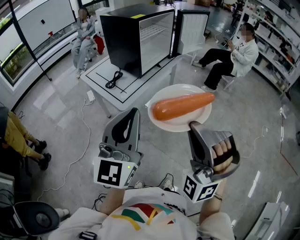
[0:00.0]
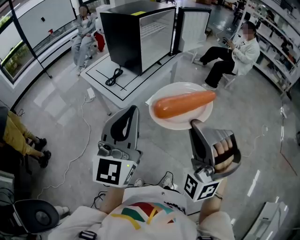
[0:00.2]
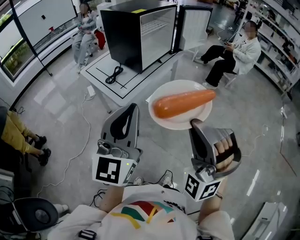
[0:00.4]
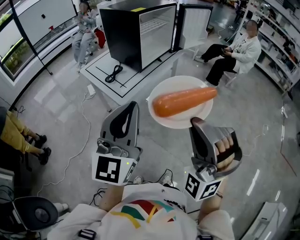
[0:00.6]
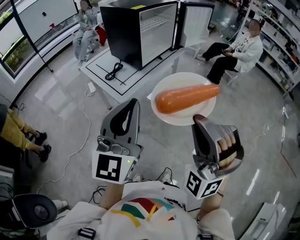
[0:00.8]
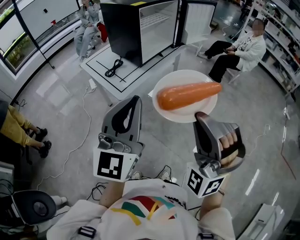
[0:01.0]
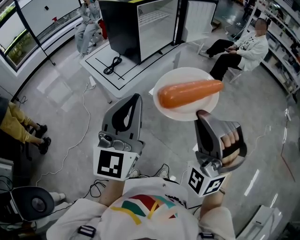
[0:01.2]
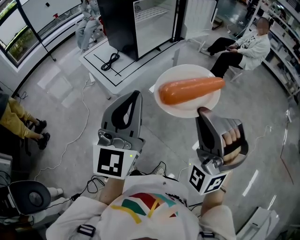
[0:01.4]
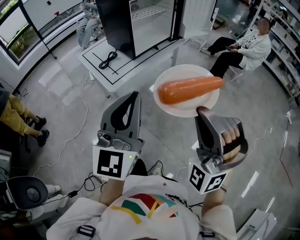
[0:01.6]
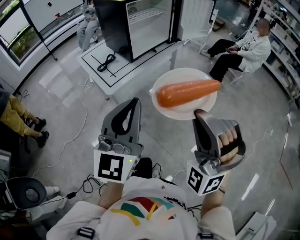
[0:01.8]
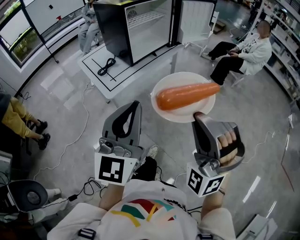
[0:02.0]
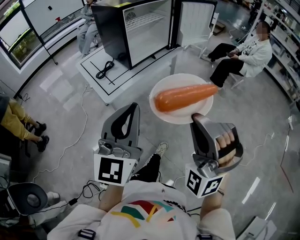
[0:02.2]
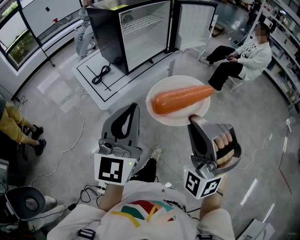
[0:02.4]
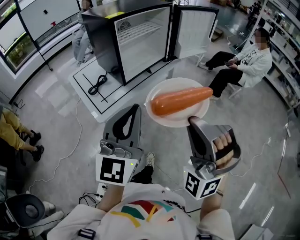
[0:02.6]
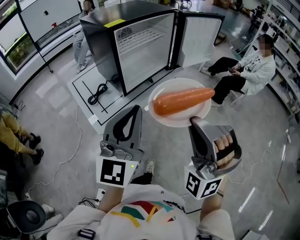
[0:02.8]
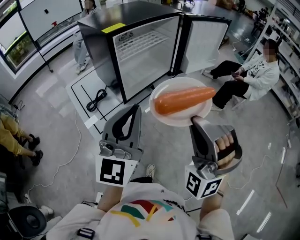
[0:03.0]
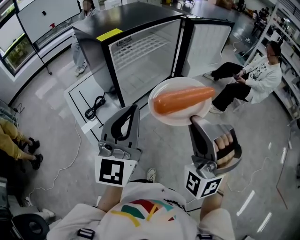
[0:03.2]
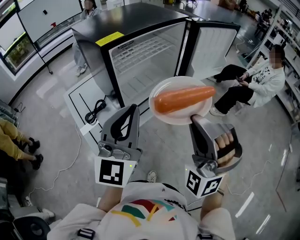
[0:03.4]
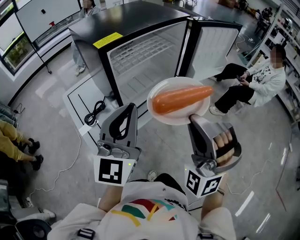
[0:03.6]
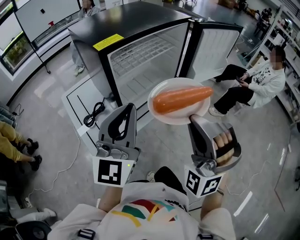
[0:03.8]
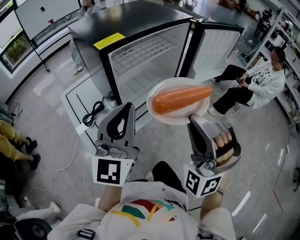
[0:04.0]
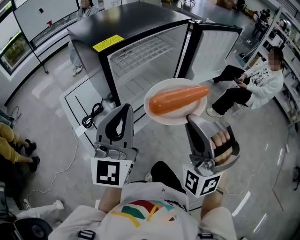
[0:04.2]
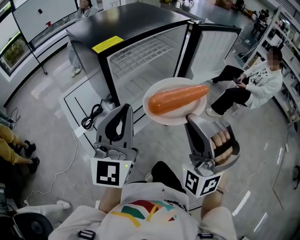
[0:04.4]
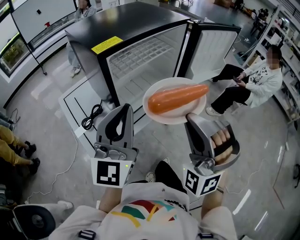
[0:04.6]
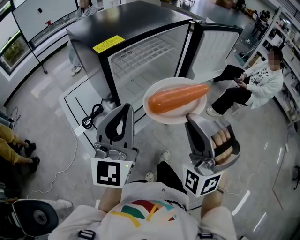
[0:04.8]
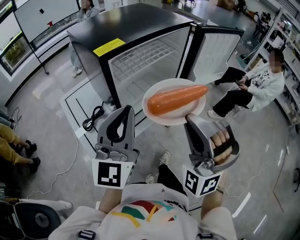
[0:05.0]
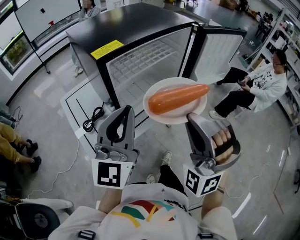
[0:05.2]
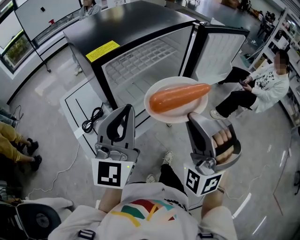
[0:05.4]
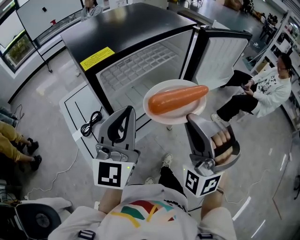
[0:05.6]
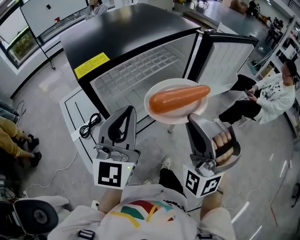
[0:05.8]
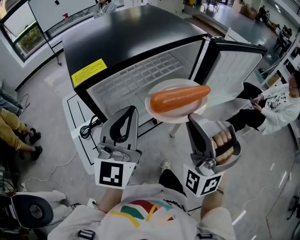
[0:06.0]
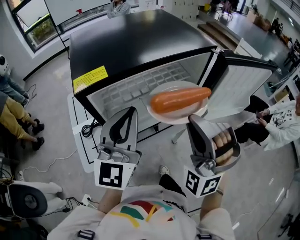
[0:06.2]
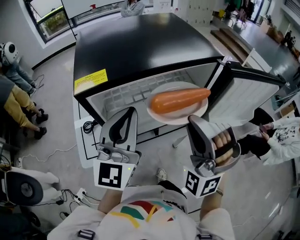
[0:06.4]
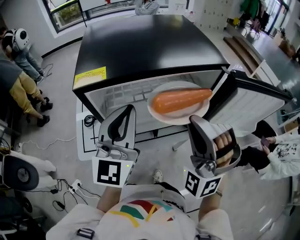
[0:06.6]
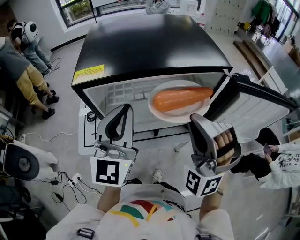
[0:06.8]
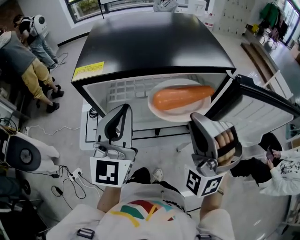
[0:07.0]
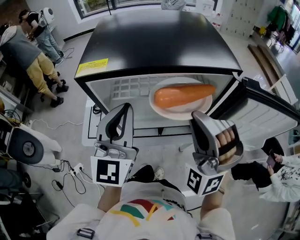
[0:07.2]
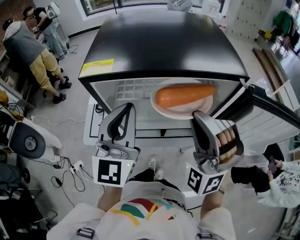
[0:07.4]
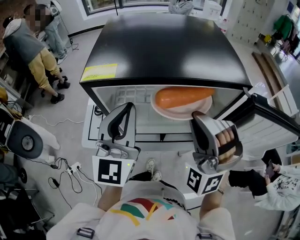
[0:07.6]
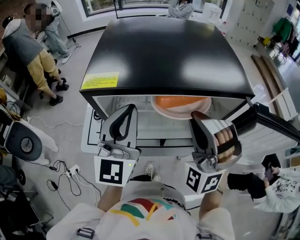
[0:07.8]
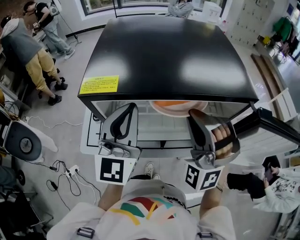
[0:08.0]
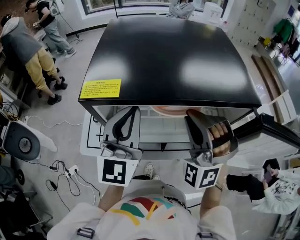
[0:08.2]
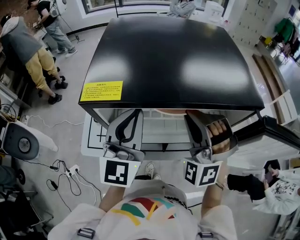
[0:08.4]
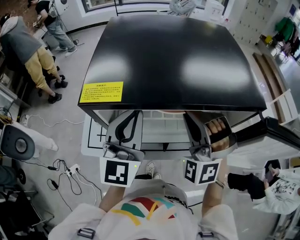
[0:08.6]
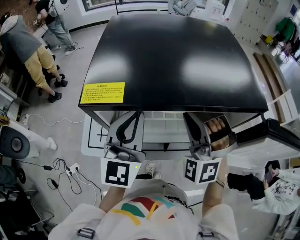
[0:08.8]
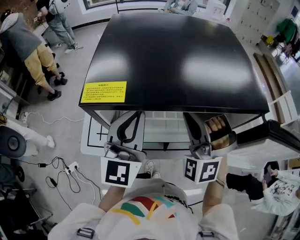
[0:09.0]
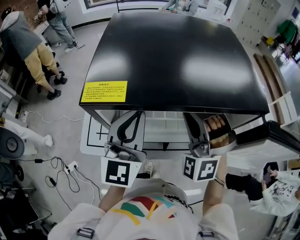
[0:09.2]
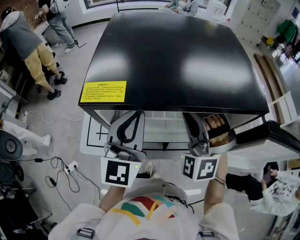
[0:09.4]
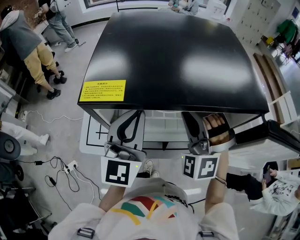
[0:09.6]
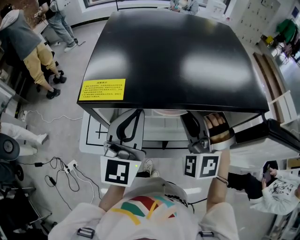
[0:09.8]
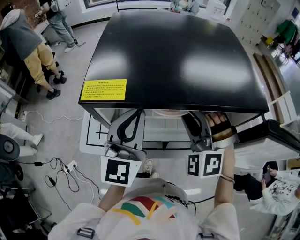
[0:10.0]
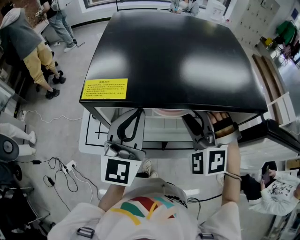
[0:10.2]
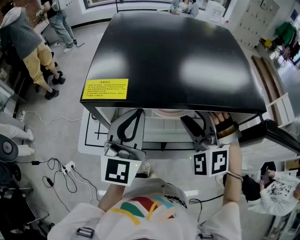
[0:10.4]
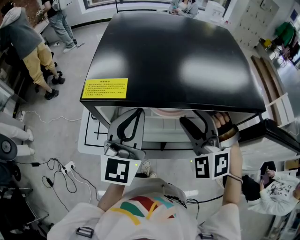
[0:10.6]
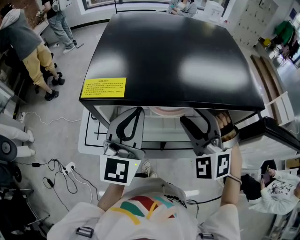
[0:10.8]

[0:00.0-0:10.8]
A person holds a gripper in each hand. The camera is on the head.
0:00.0 to 0:01.6: The left gripper shifts by some 10 cm.
0:01.6 to 0:03.0: The left gripper changes place by some 30 cm.
0:03.0 to 0:04.6: The left gripper moves about 15 cm.
0:04.6 to 0:06.2: The left gripper shifts by some 15 cm.
0:06.2 to 0:07.8: The left gripper shifts by approximately 5 cm, and rotates roughly 30 degrees.
0:07.8 to 0:09.2: The left gripper ends up approximately 5 cm from where it was.

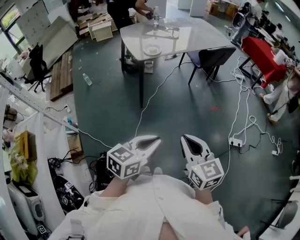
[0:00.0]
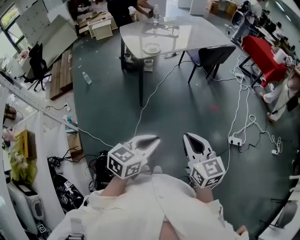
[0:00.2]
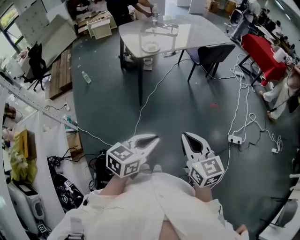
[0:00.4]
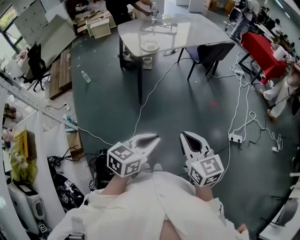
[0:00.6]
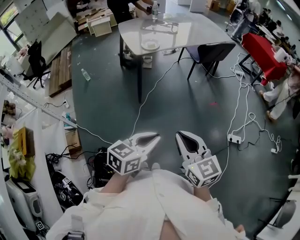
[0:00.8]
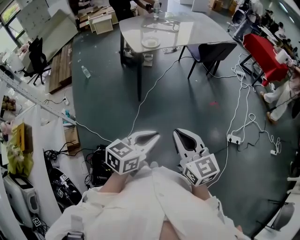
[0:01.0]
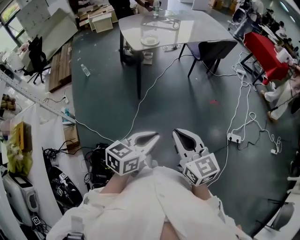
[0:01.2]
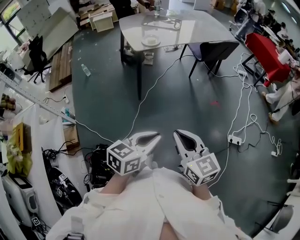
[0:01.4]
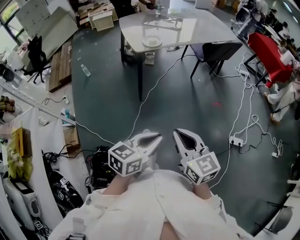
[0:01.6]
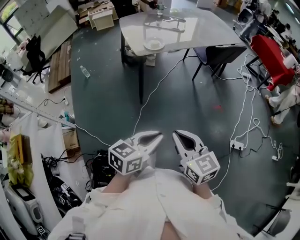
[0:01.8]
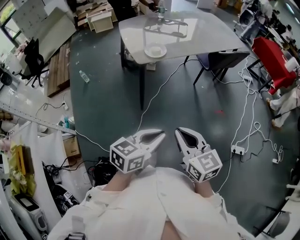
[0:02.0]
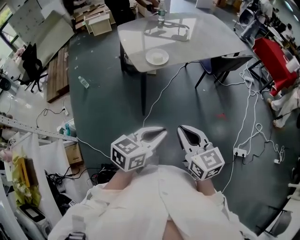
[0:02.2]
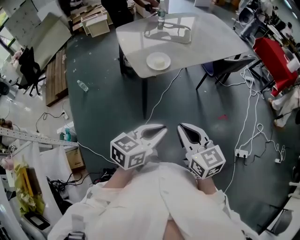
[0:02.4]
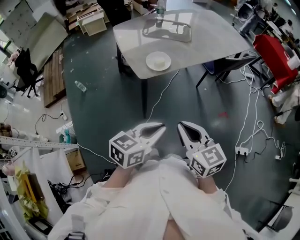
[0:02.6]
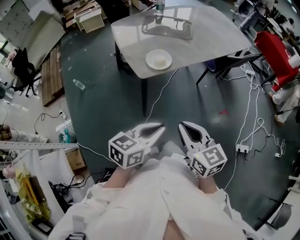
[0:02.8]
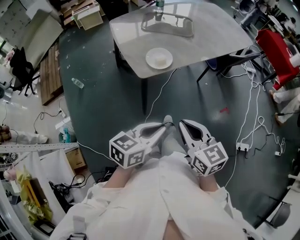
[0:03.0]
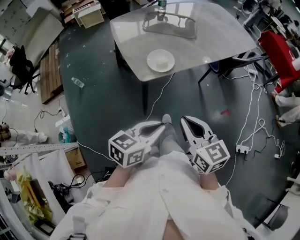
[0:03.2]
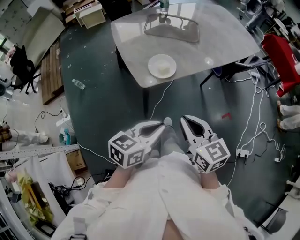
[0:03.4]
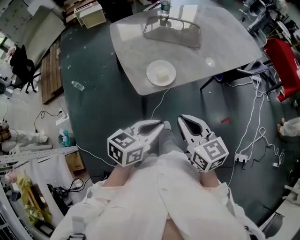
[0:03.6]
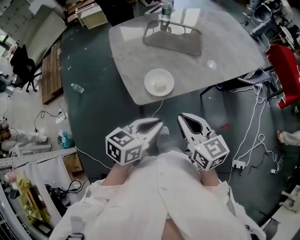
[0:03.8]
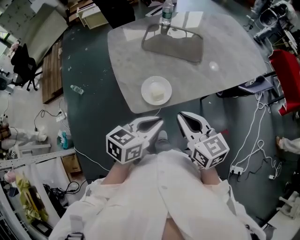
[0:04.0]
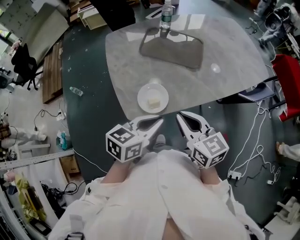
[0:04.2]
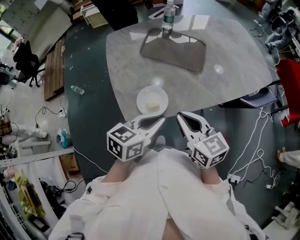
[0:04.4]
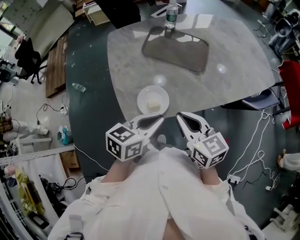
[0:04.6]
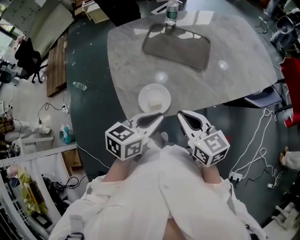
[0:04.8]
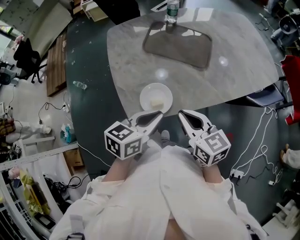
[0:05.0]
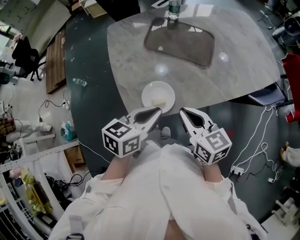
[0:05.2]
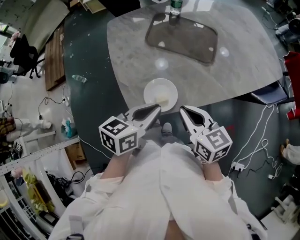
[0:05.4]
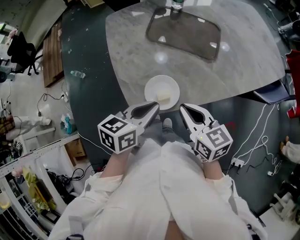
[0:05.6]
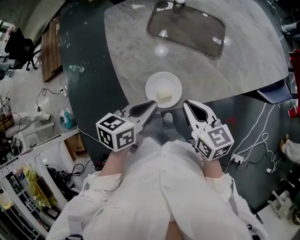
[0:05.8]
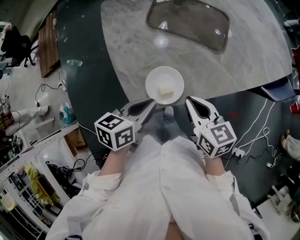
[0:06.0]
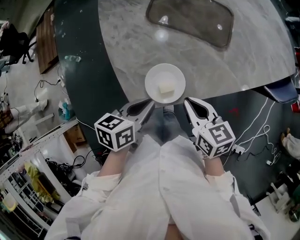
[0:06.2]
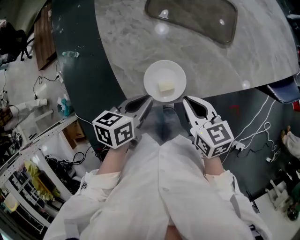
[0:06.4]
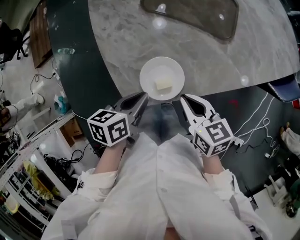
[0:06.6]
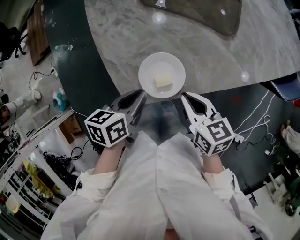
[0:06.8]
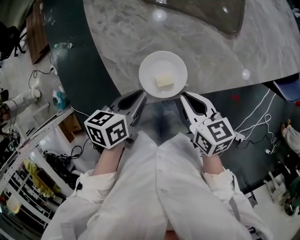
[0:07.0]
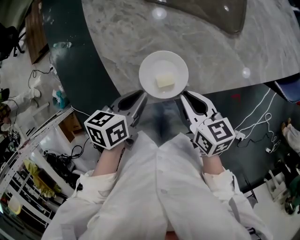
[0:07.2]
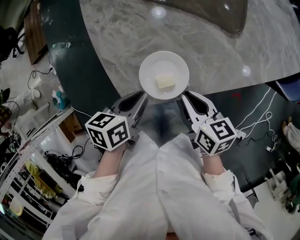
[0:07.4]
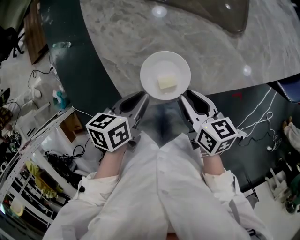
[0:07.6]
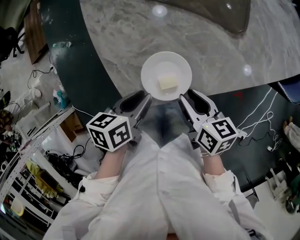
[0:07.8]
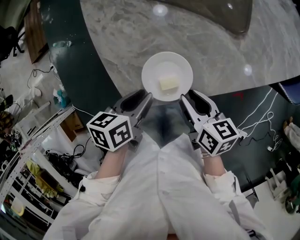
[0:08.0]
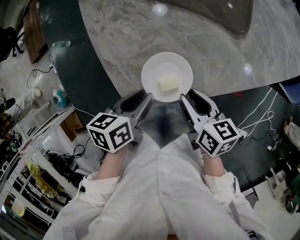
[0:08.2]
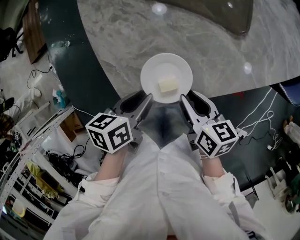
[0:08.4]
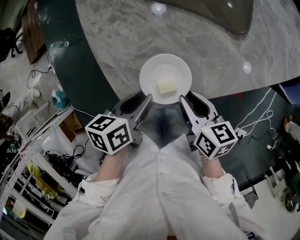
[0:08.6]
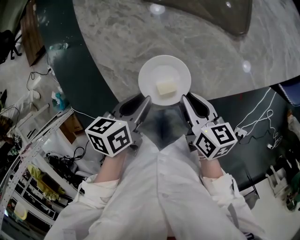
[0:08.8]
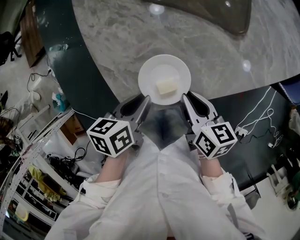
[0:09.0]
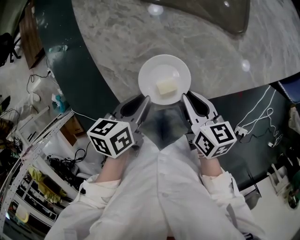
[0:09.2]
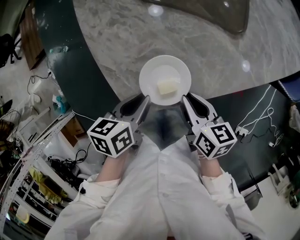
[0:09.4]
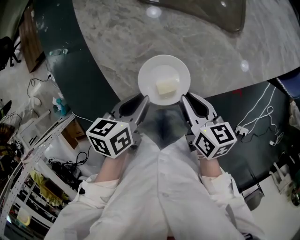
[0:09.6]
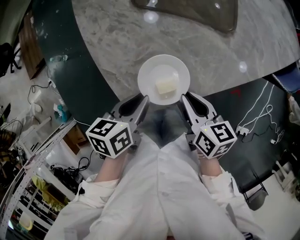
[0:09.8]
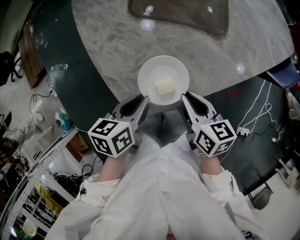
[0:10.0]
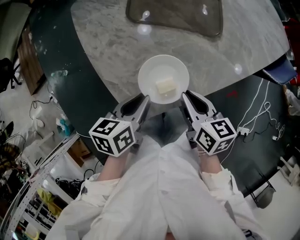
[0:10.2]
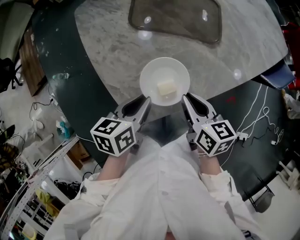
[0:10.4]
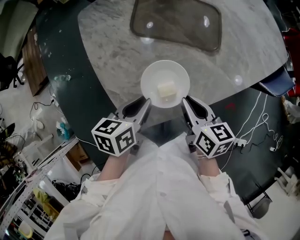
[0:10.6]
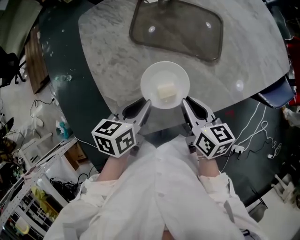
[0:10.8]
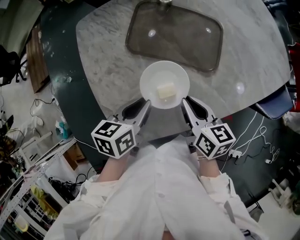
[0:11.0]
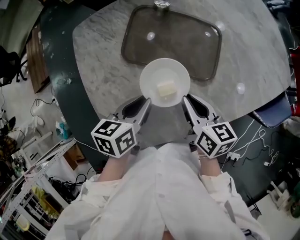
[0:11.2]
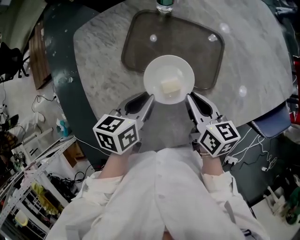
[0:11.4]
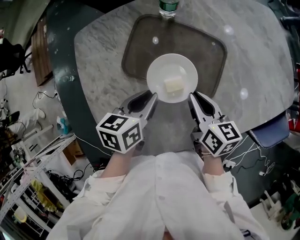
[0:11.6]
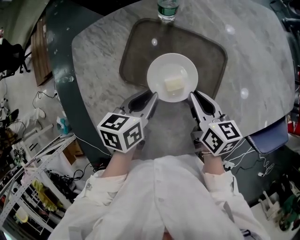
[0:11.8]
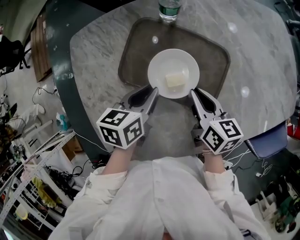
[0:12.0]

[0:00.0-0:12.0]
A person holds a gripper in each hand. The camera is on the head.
0:00.0 to 0:01.6: Both grippers move forward, roughly 5 cm.
0:01.6 to 0:03.0: The right gripper is displaced forward by roughly 30 cm. Meanwhile the left gripper shifts roughly 35 cm forward and to the left.
0:03.0 to 0:04.4: The two grippers go approximately 30 cm forward.
0:04.4 to 0:06.0: The left gripper is displaced to the left and downward by about 10 cm, while the right gripper travels downward by approximately 10 cm.
0:06.0 to 0:07.6: Both grippers travel together downward, approximately 10 cm.
0:07.6 to 0:09.0: The grippers move only a little.
0:09.0 to 0:10.4: The two grippers go approximately 5 cm upward.
0:10.4 to 0:12.0: The two grippers go some 30 cm forward.

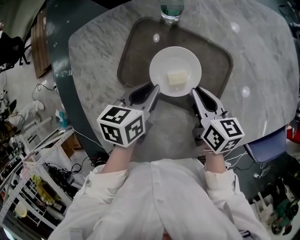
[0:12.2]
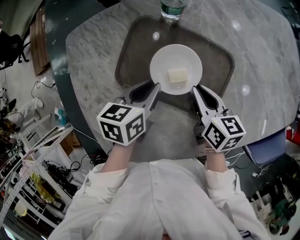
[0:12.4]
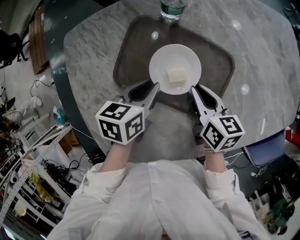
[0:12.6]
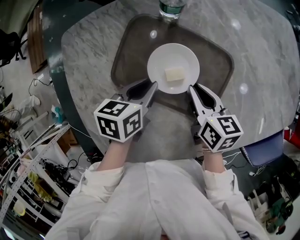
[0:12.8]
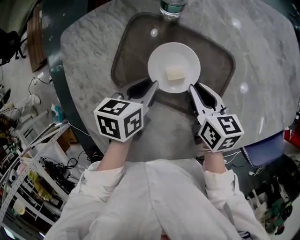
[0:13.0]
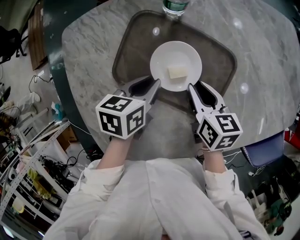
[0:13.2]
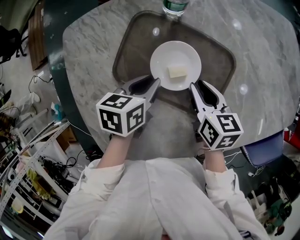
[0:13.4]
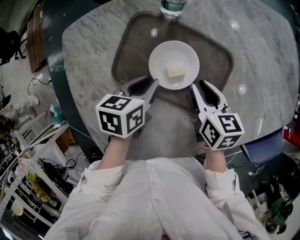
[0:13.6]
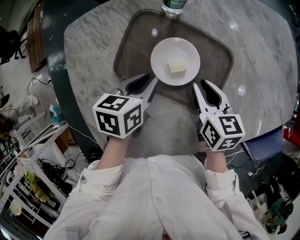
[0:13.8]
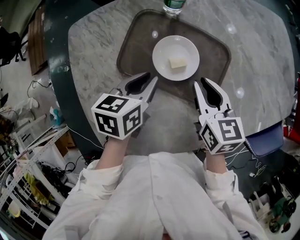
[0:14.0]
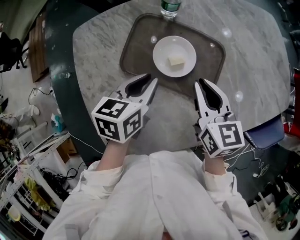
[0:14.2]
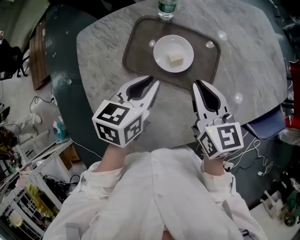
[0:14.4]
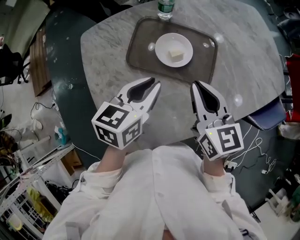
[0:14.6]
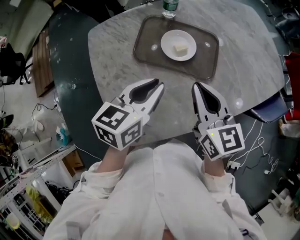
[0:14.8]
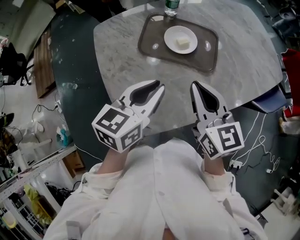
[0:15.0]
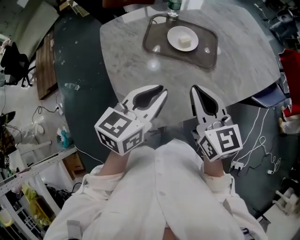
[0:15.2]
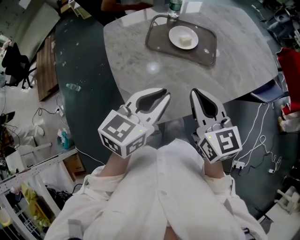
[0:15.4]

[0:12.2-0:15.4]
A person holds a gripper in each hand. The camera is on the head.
0:12.2 to 0:13.8: The grippers stay close to where they were, moving slightly.
0:13.8 to 0:15.4: The grippers both shift backward and upward by roughly 35 cm. The left gripper changes its angle by some 40 degrees. The right gripper swivels some 30 degrees.
